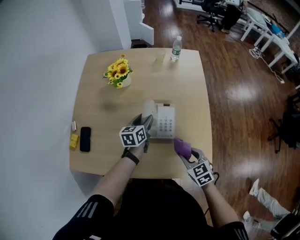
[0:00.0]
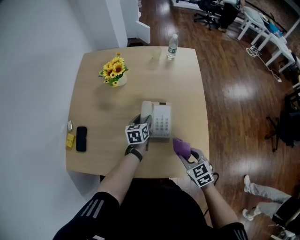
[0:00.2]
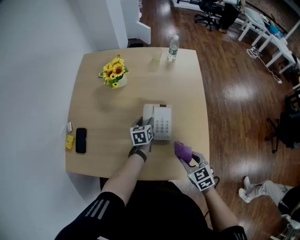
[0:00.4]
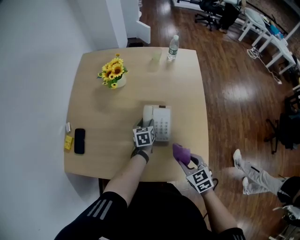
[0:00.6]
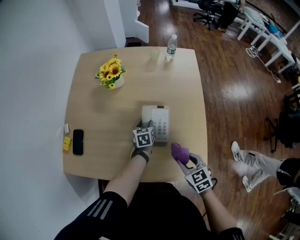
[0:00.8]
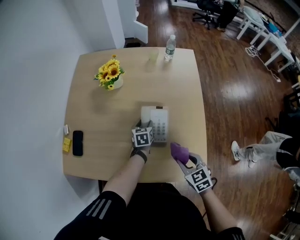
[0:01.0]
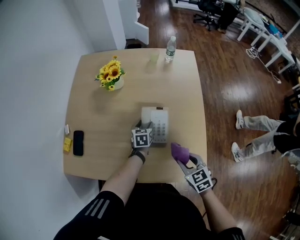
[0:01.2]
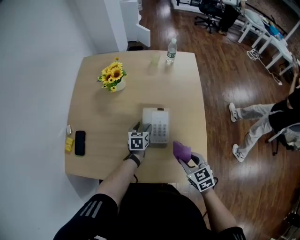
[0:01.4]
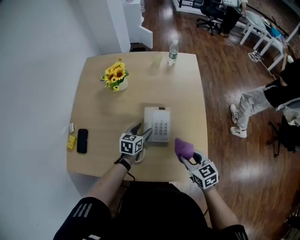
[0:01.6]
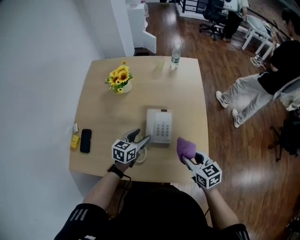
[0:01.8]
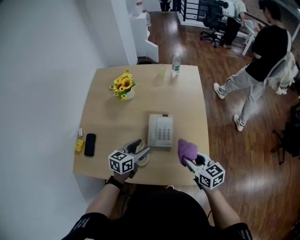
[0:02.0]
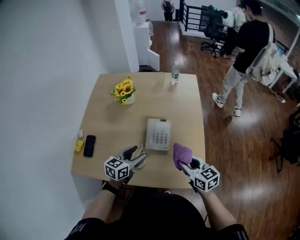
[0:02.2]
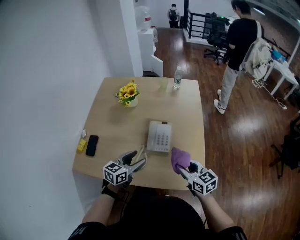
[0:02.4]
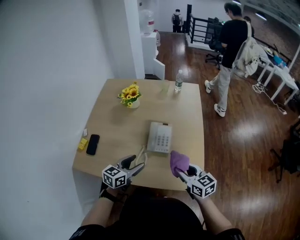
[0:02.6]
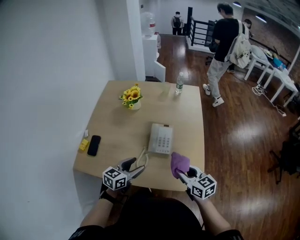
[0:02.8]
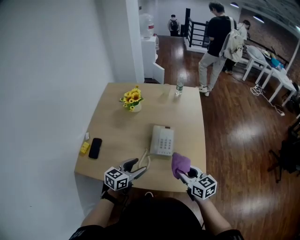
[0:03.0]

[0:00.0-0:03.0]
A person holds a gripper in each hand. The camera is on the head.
0:00.0 to 0:01.6: The left gripper moves approximately 10 cm downward and comes back.
0:01.6 to 0:03.0: The left gripper goes roughly 25 cm backward and upward; the right gripper goes roughly 10 cm upward and backward.

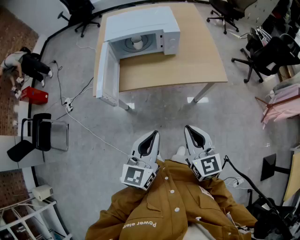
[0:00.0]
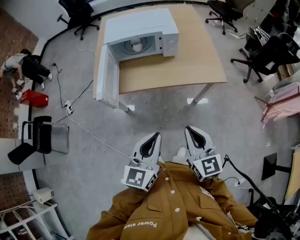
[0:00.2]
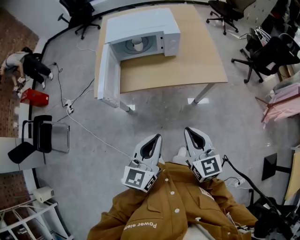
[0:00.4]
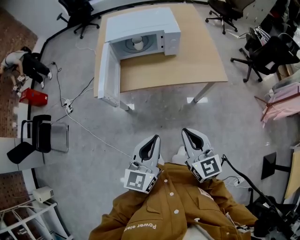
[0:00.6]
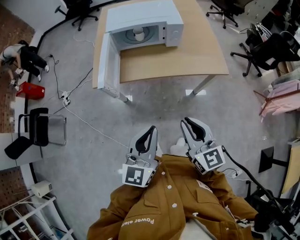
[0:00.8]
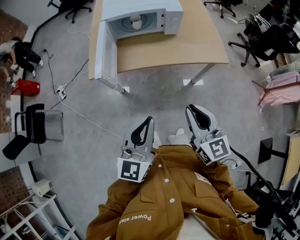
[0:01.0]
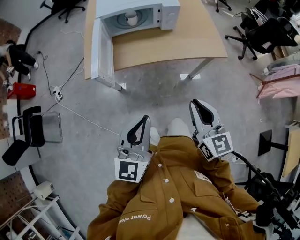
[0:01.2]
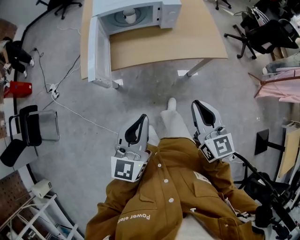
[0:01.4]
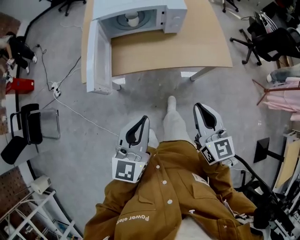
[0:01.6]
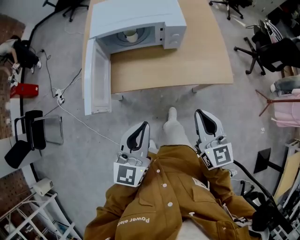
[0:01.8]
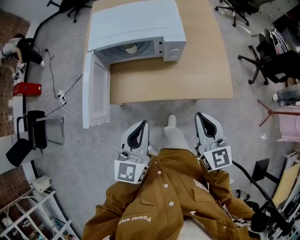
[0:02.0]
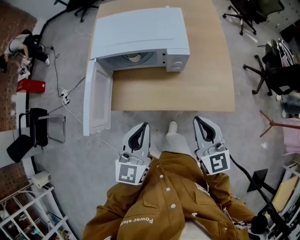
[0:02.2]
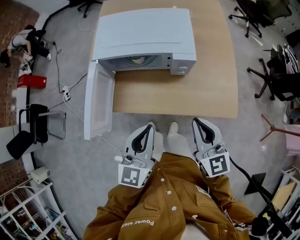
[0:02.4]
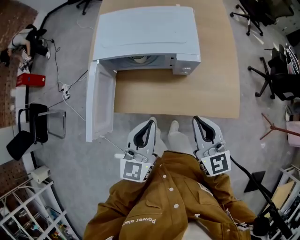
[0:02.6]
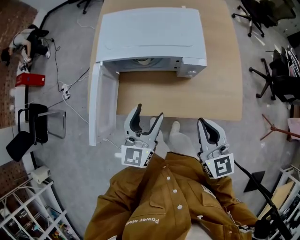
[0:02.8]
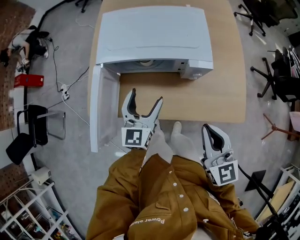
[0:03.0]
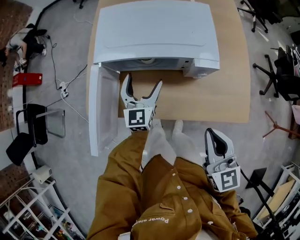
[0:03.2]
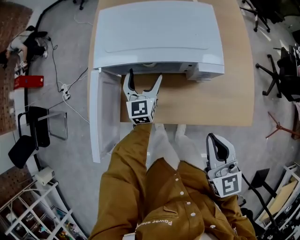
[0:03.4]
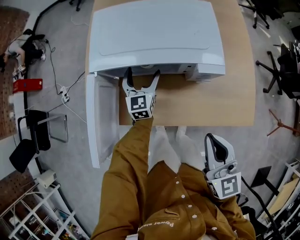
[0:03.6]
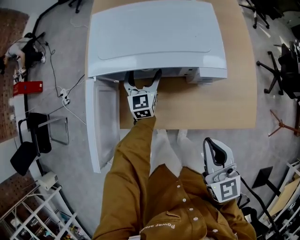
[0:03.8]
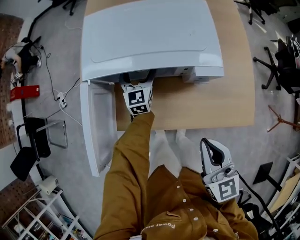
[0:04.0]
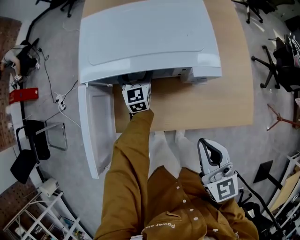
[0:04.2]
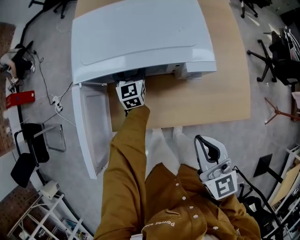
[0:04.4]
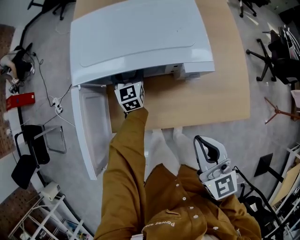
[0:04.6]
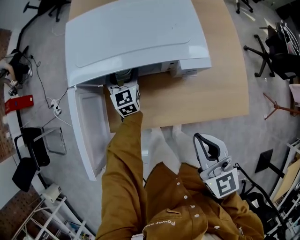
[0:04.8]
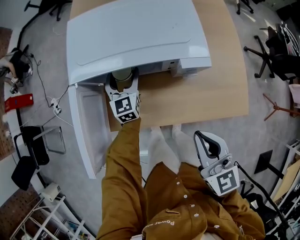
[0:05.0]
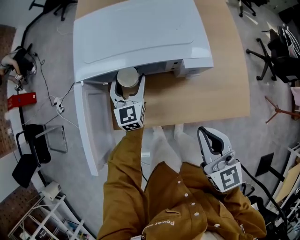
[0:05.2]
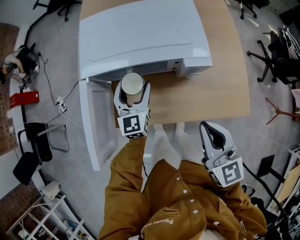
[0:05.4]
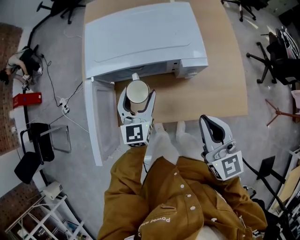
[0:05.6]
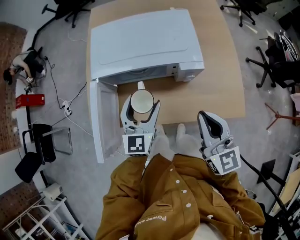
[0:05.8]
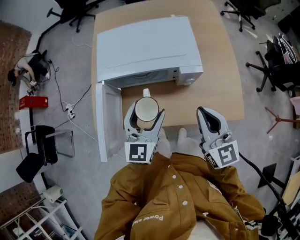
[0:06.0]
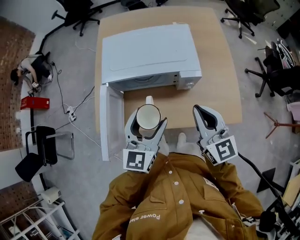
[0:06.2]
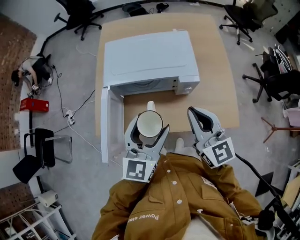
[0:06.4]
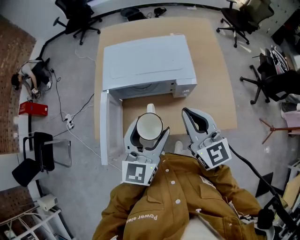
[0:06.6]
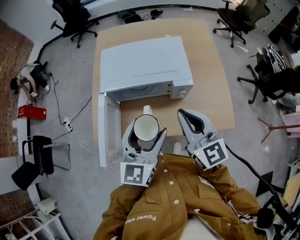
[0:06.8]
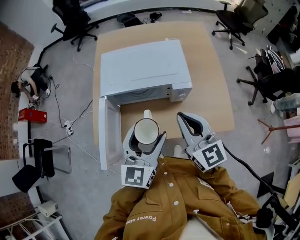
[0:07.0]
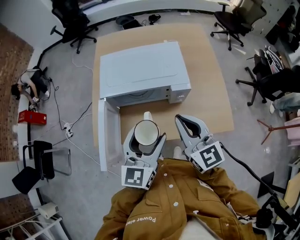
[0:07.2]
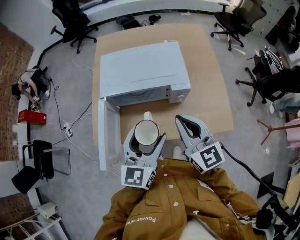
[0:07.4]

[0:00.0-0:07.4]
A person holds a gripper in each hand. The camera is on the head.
0:00.0 to 0:01.4: The left gripper shifts about 5 cm to the left.
0:01.4 to 0:03.0: Both grippers move forward, approximately 35 cm. The left gripper opens up.
0:03.0 to 0:04.4: The right gripper shifts by some 5 cm; the left gripper goes about 25 cm forward and downward.
0:04.4 to 0:06.0: The right gripper shifts some 5 cm upward; the left gripper travels backward and upward by approximately 30 cm.
0:06.0 to 0:07.4: The right gripper moves upward, about 5 cm. The left gripper shifts about 10 cm upward and backward.

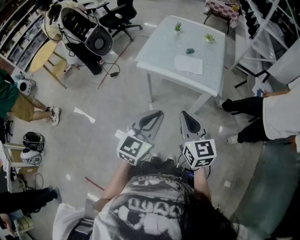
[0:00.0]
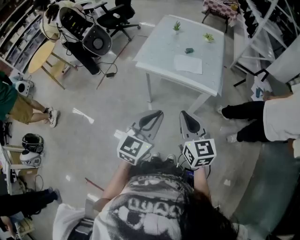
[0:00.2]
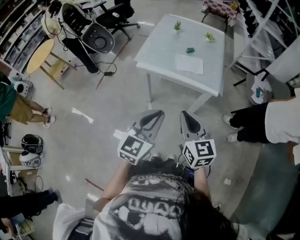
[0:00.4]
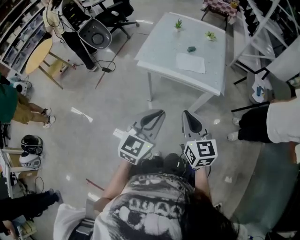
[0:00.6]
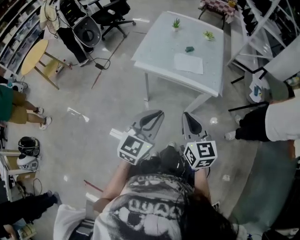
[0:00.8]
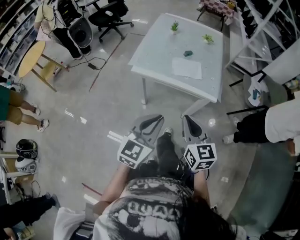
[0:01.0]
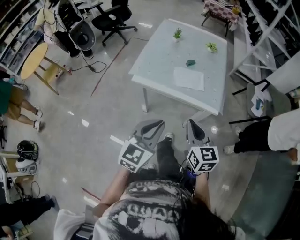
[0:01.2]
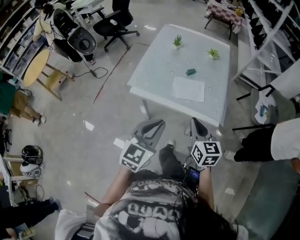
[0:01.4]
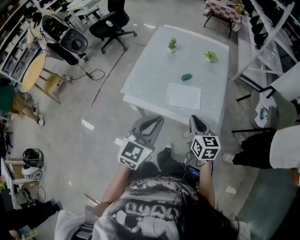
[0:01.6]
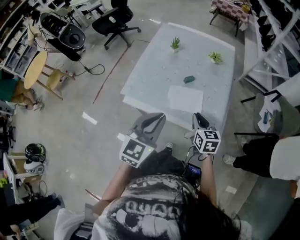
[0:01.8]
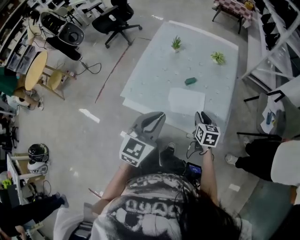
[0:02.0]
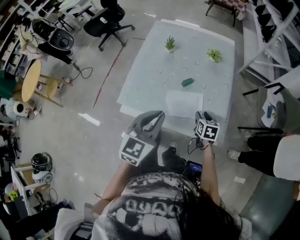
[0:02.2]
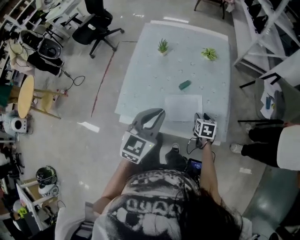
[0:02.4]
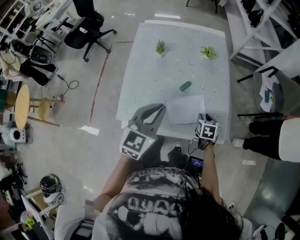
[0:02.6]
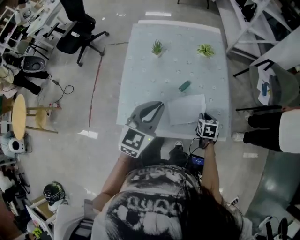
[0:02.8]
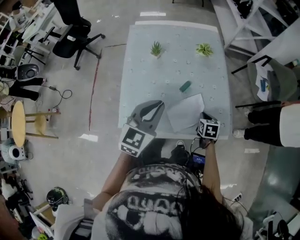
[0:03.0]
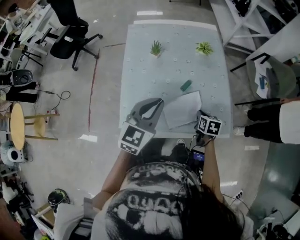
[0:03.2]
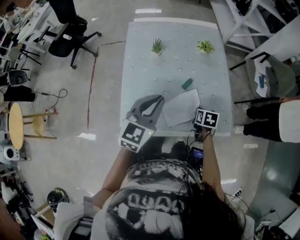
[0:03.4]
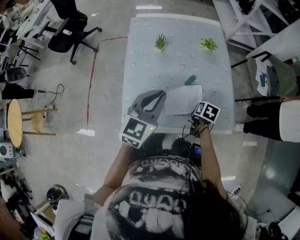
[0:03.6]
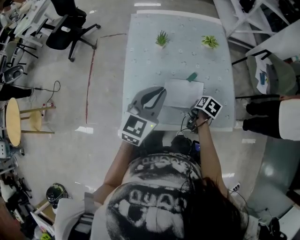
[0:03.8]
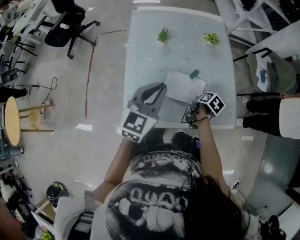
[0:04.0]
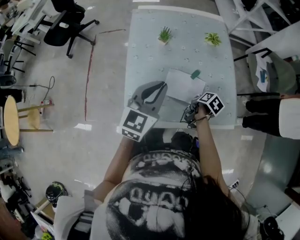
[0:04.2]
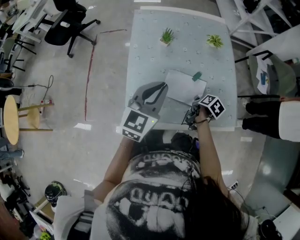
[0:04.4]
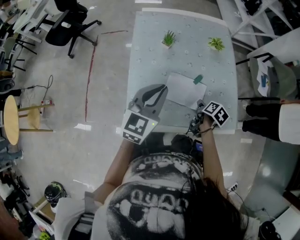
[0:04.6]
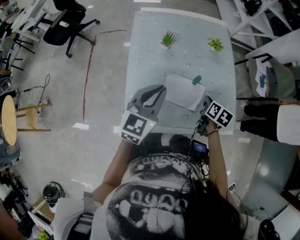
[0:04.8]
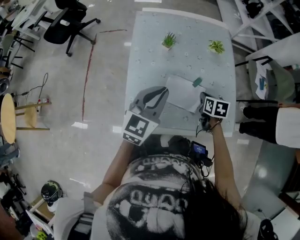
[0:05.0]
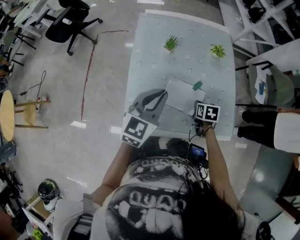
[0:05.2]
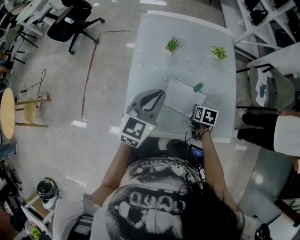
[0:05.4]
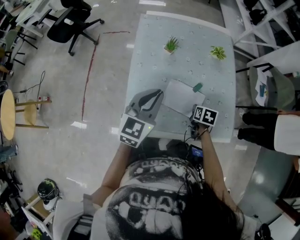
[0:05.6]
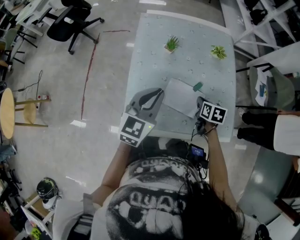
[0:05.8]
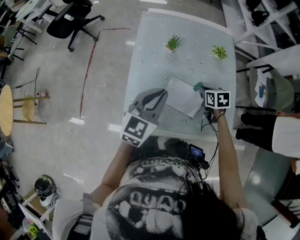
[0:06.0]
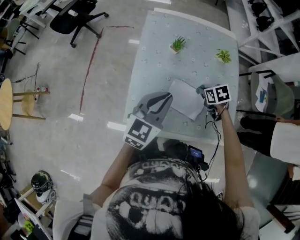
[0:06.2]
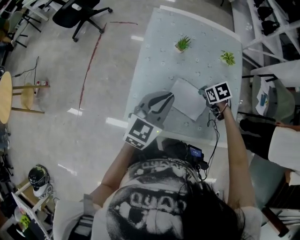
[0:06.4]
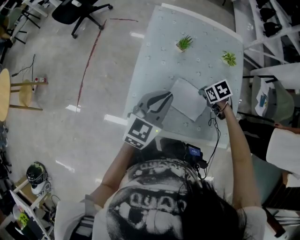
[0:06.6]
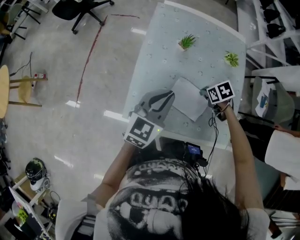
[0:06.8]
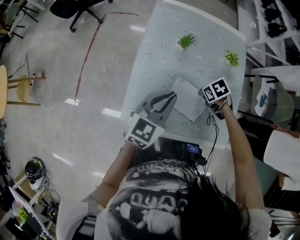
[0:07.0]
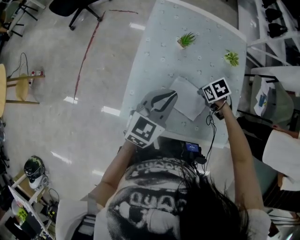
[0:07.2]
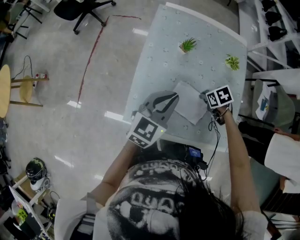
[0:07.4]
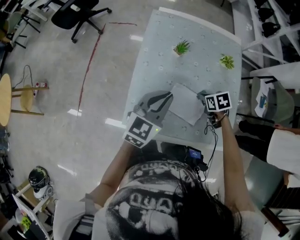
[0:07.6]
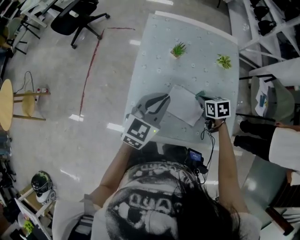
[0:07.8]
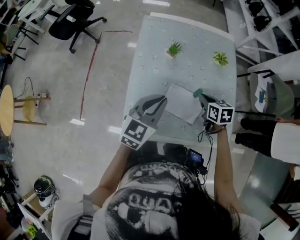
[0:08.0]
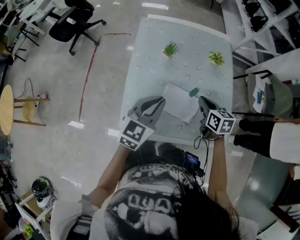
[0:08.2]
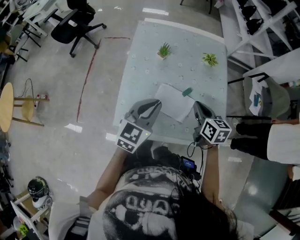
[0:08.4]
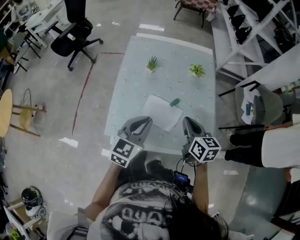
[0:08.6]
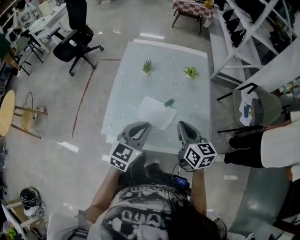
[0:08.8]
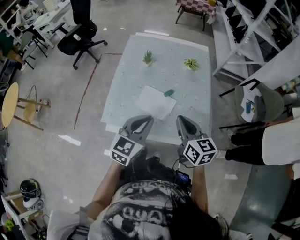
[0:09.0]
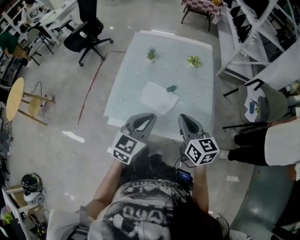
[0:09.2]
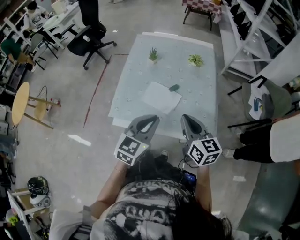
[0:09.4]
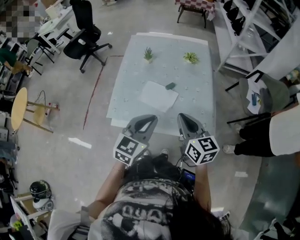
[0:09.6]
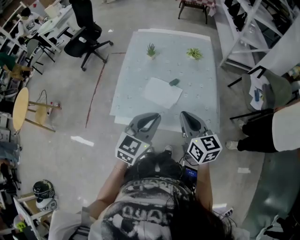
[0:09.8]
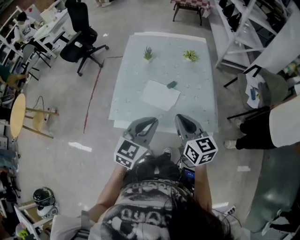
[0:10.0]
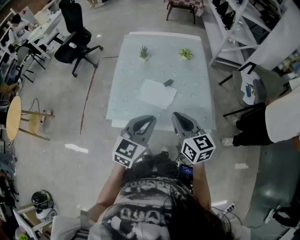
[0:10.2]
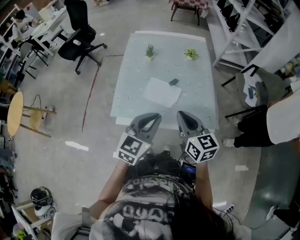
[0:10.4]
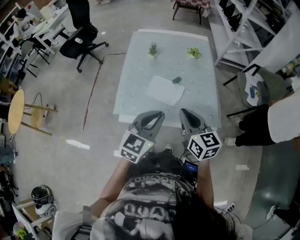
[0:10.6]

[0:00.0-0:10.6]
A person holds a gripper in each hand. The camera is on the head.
0:00.0 to 0:01.6: Both grippers travel together forward, approximately 30 cm.
0:01.6 to 0:03.0: The left gripper shifts about 25 cm forward and to the left. The right gripper moves downward and forward, some 25 cm, angles its fingers downward, by about 30 degrees, and opens, then closes once more.
0:03.0 to 0:04.6: Both grippers move to the left, roughly 5 cm. The right gripper twists roughly 50 degrees clockwise, seen from behind, and opens its fingers.
0:04.6 to 0:06.0: The right gripper swings forward and backward, some 10 cm each way, with 2 reversals, rolls counterclockwise, seen from behind, by roughly 60 degrees, and closes up.
0:07.6 to 0:09.0: The left gripper goes about 20 cm backward and to the right; the right gripper heads upward and backward, covering some 25 cm, and angles its fingers upward, by about 50 degrees.
0:09.0 to 0:10.6: The two grippers go approximately 5 cm backward.

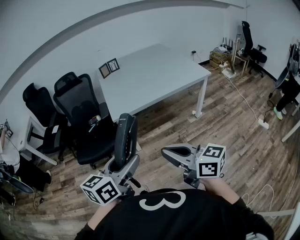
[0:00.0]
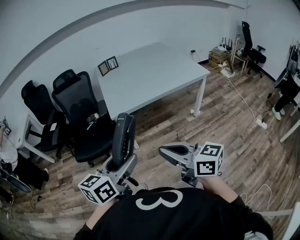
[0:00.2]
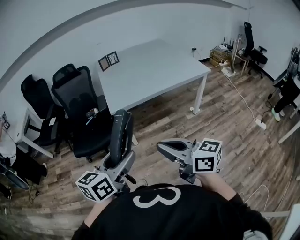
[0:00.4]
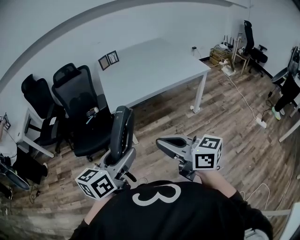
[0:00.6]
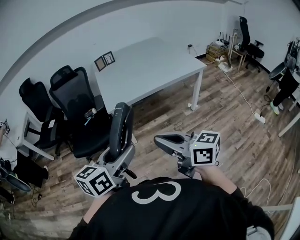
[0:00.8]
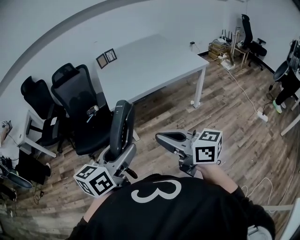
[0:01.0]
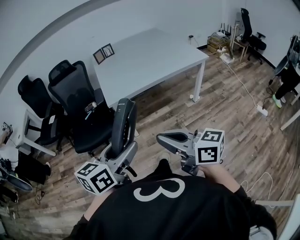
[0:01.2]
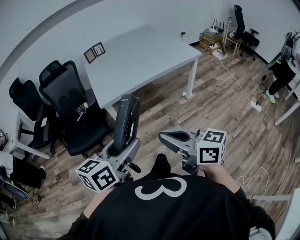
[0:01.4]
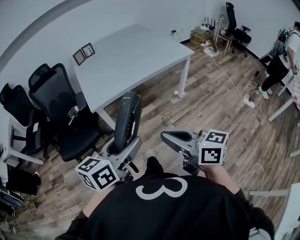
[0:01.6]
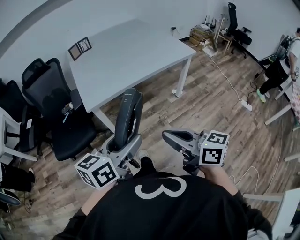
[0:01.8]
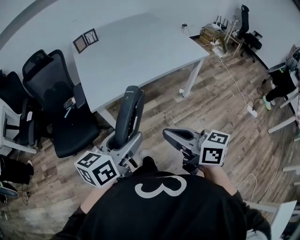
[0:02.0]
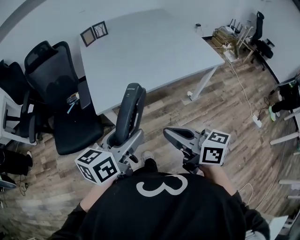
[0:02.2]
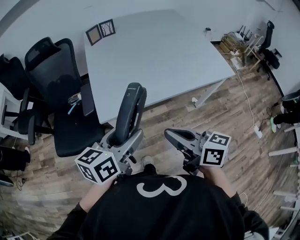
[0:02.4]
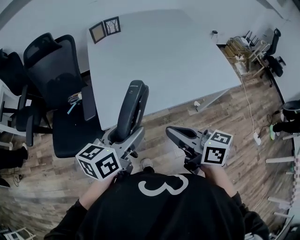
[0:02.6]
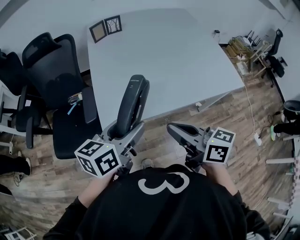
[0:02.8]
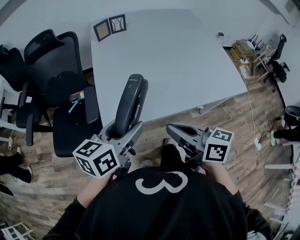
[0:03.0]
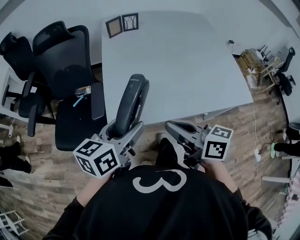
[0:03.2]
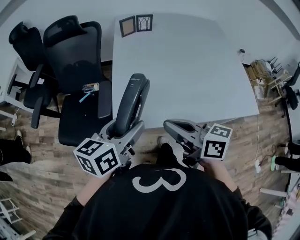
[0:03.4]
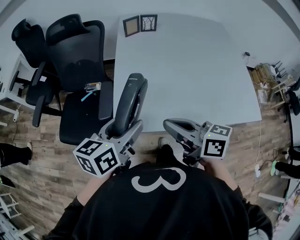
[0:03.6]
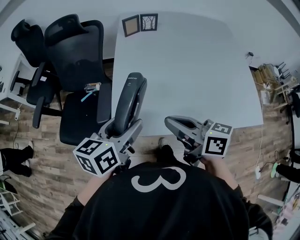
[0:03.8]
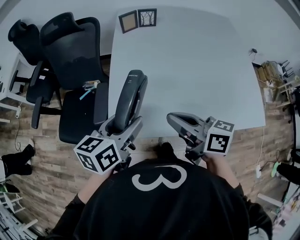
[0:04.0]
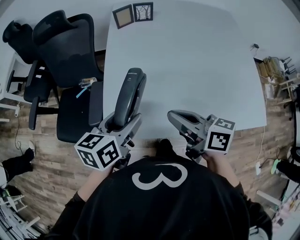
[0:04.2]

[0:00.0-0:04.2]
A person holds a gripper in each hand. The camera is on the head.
0:00.0 to 0:01.4: The grippers make only small movements.
0:01.4 to 0:02.8: The two grippers go about 40 cm forward.
0:02.8 to 0:04.2: The two grippers go approximately 15 cm forward. The left gripper rotates about 20 degrees.
